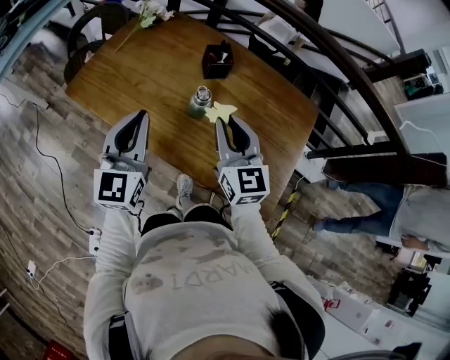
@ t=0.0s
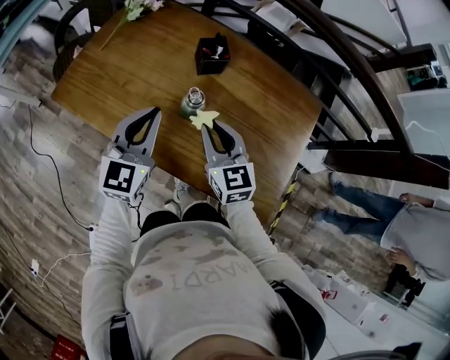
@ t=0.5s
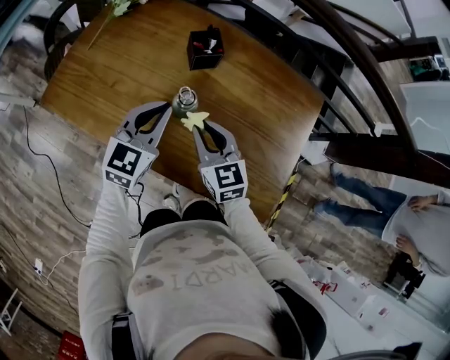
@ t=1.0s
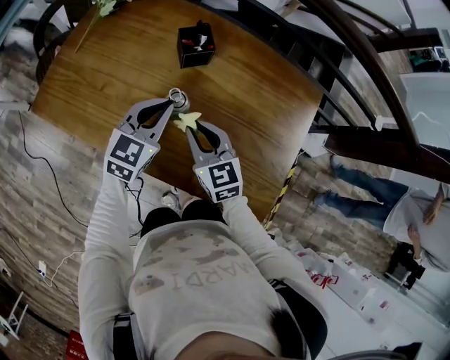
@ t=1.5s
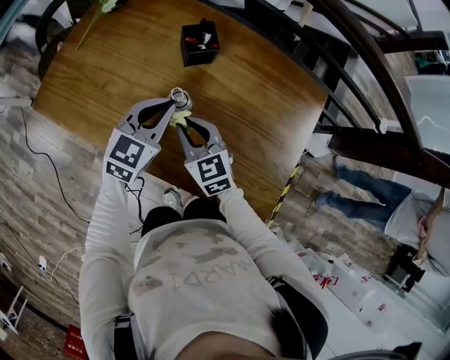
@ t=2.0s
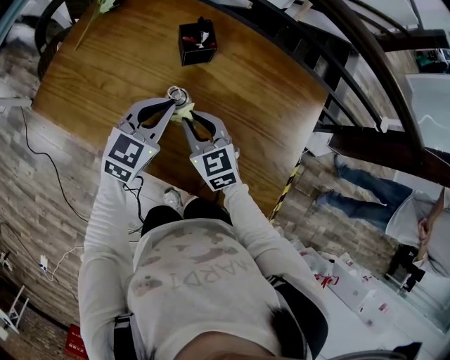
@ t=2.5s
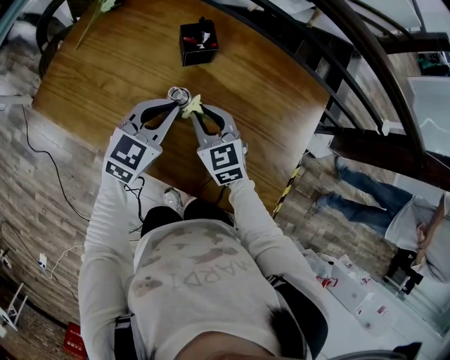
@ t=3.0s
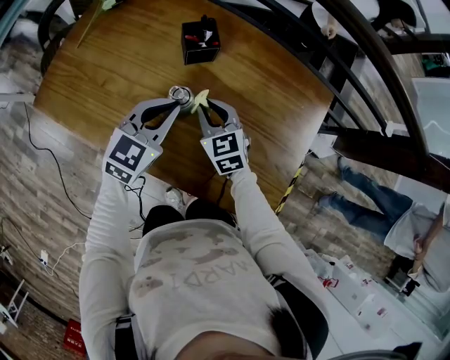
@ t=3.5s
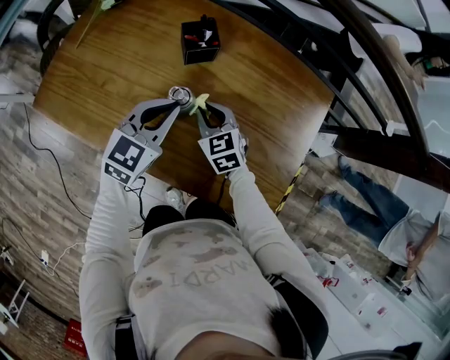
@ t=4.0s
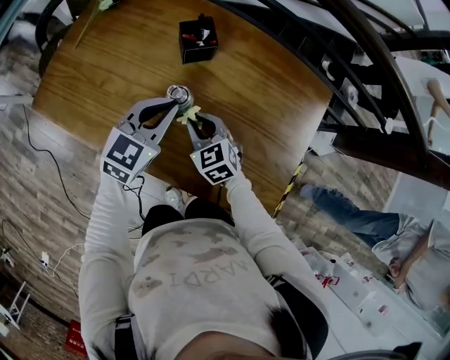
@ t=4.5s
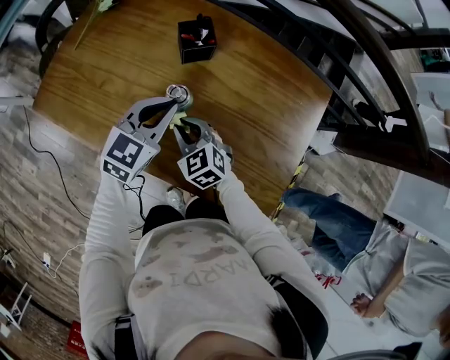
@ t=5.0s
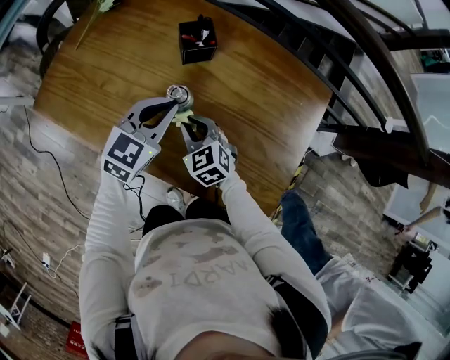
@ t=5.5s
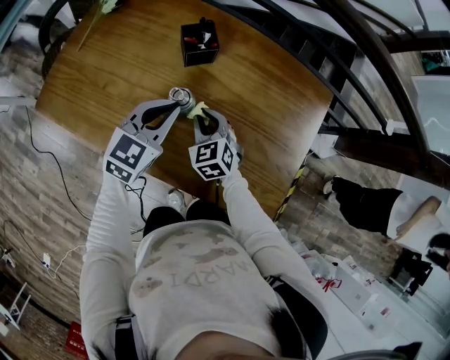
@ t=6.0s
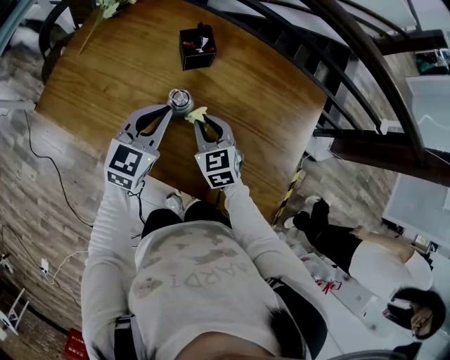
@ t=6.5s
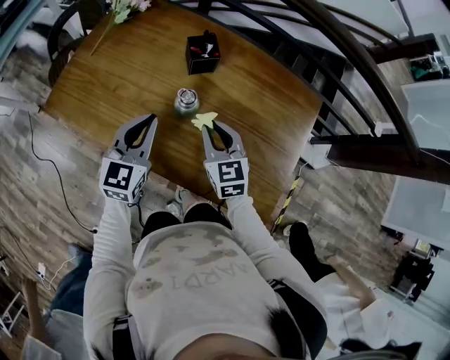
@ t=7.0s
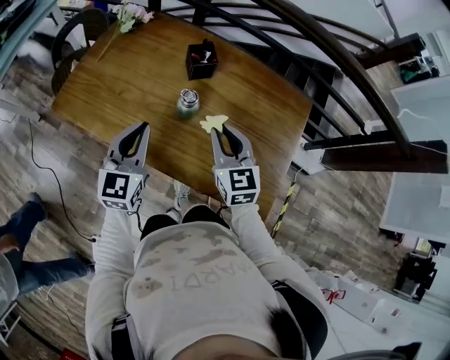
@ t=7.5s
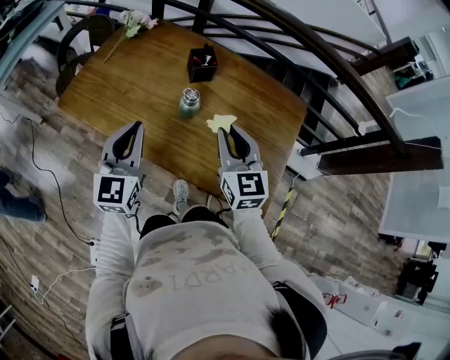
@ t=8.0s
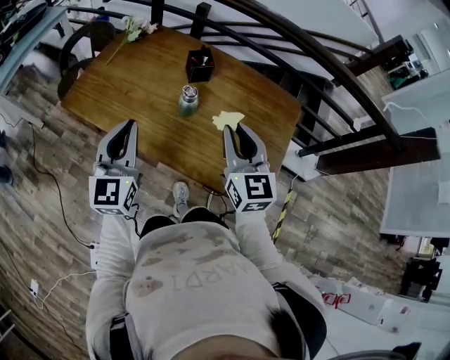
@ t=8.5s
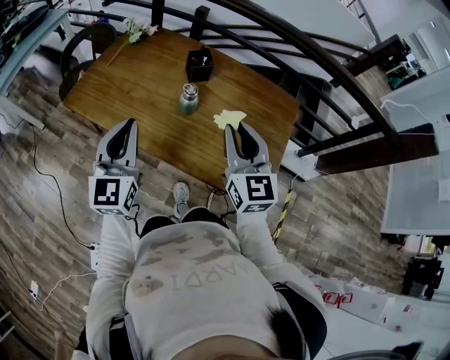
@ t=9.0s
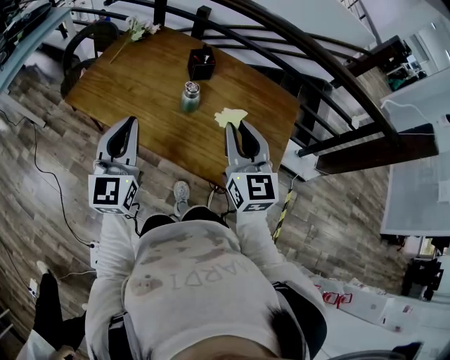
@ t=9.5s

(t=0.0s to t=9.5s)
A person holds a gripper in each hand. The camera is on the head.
t=0.0s - t=2.0s: The right gripper heads downward and forward, covering roughly 20 cm, and changes its angle by roughly 20 degrees, while the left gripper shifts some 25 cm downward, forward and to the right, and rotates roughly 30 degrees.
t=2.0s - t=4.0s: The right gripper shifts roughly 10 cm downward and forward.
t=4.0s - t=5.5s: The right gripper ends up some 5 cm from where it was.
t=5.5s - t=7.5s: The right gripper shifts some 15 cm upward, and changes its angle by some 30 degrees. Meanwhile the left gripper travels backward, to the left and upward by about 15 cm, and turns by roughly 30 degrees.
t=7.5s - t=9.5s: The left gripper heads backward and upward, covering approximately 15 cm. Meanwhile the right gripper moves upward and backward, approximately 20 cm.

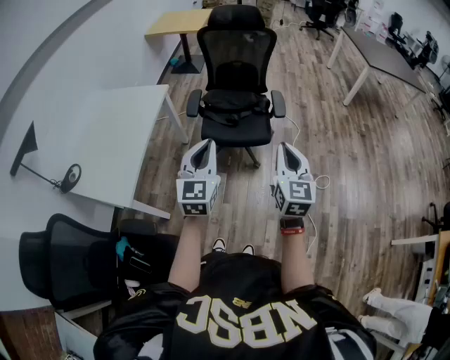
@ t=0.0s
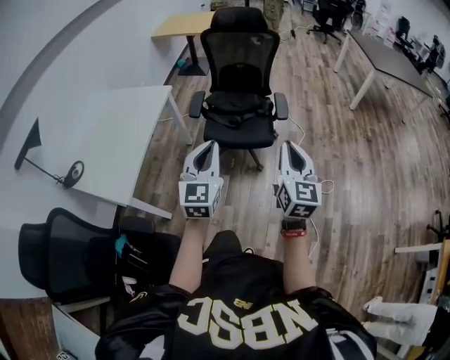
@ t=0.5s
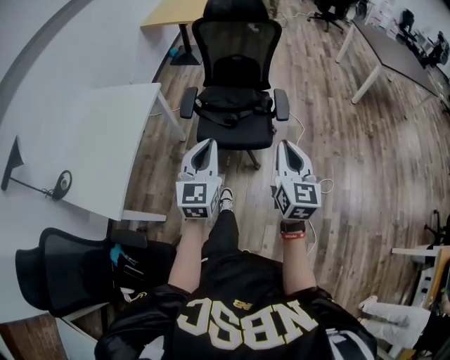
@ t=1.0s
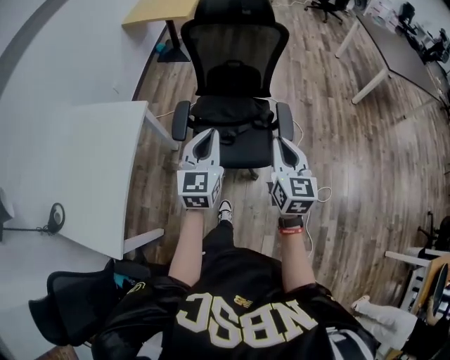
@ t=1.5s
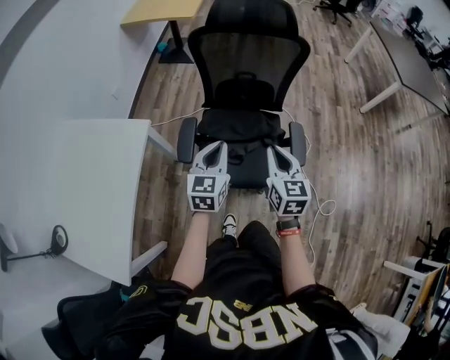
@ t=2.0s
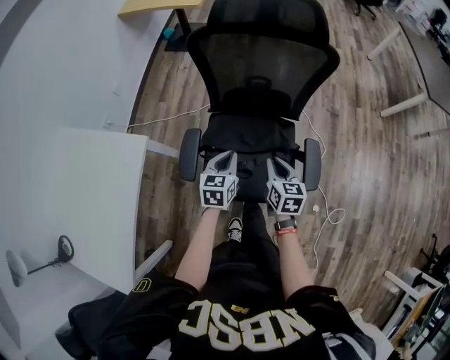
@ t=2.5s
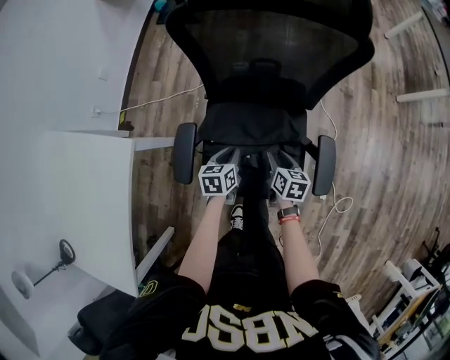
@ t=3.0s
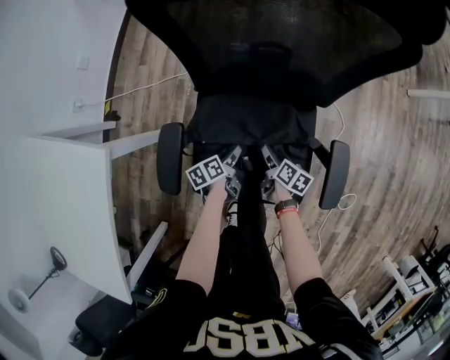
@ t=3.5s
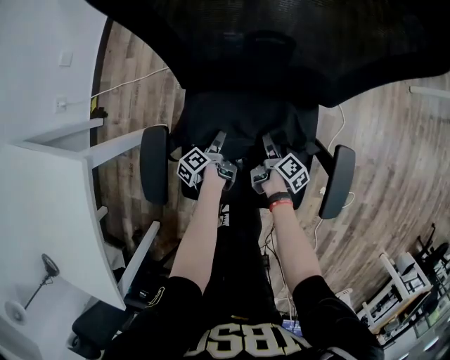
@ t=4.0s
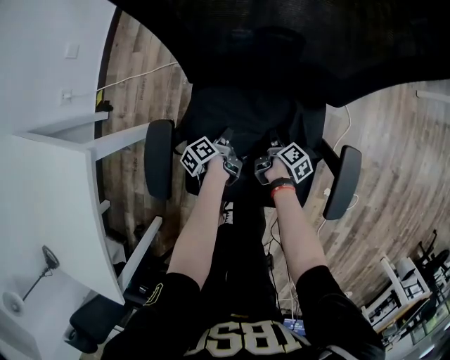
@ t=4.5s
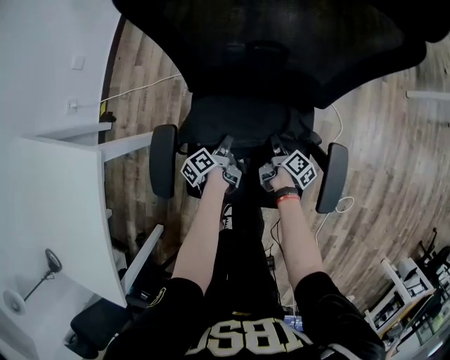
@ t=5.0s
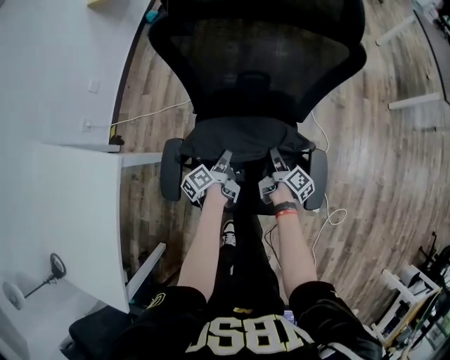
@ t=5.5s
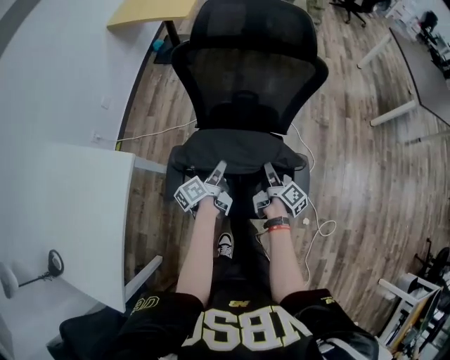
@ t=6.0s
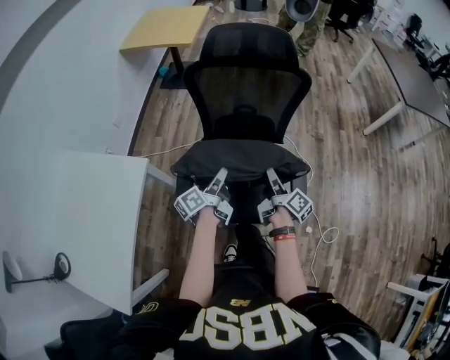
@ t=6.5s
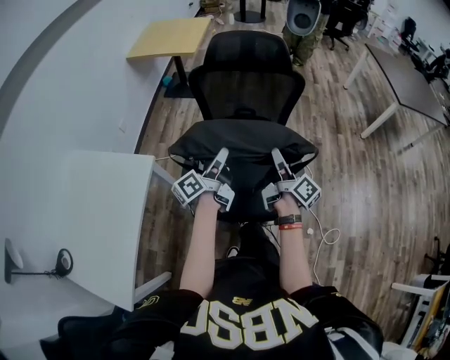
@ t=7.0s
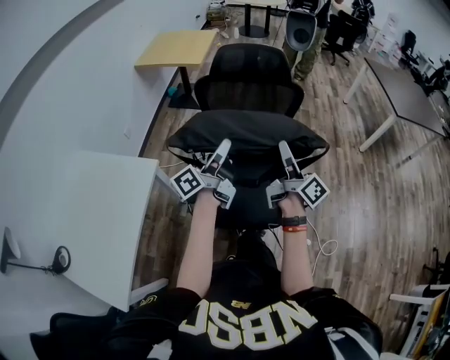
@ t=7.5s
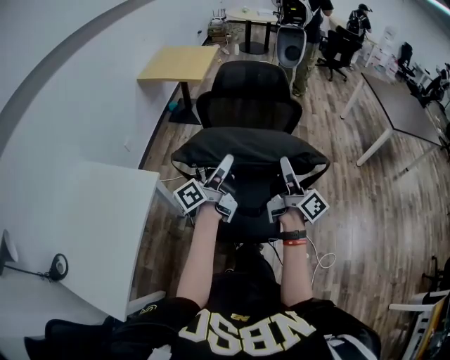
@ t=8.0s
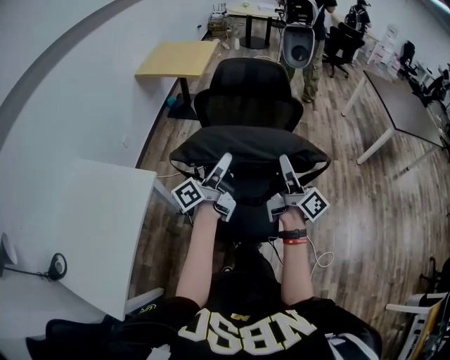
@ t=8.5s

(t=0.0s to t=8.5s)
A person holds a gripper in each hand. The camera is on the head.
t=0.0s - t=2.0s: Both grippers are carried forward, about 40 cm.
t=2.0s - t=4.0s: The right gripper travels downward and forward by some 60 cm, rolls clockwise, seen from behind, by some 70 degrees, and opens up. The left gripper shifts roughly 50 cm downward, rotates around the line of its fingers by some 90 degrees, counterclockwise from behind, and opens.
t=4.0s - t=6.5s: Both grippers move upward, roughly 40 cm. The left gripper tips its fingers upward by about 40 degrees, and closes up. Meanwhile the right gripper tilts its fingers approximately 30 degrees upward, and closes.
t=6.5s - t=8.5s: The two grippers go approximately 20 cm upward. The left gripper changes its angle by roughly 30 degrees; the right gripper rotates some 30 degrees.

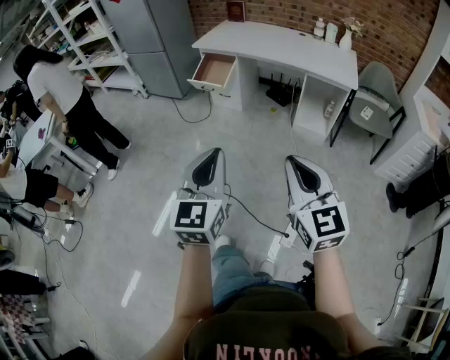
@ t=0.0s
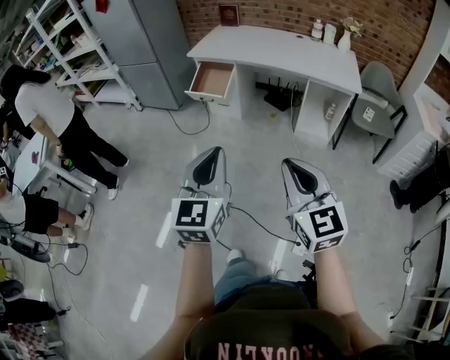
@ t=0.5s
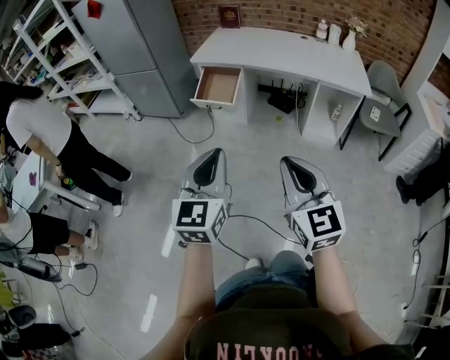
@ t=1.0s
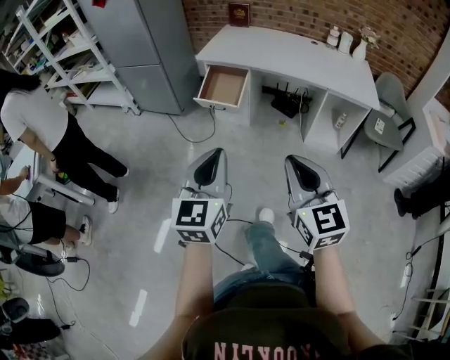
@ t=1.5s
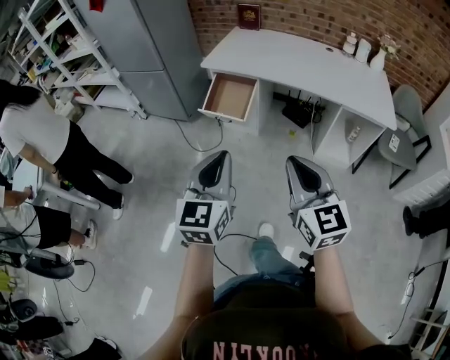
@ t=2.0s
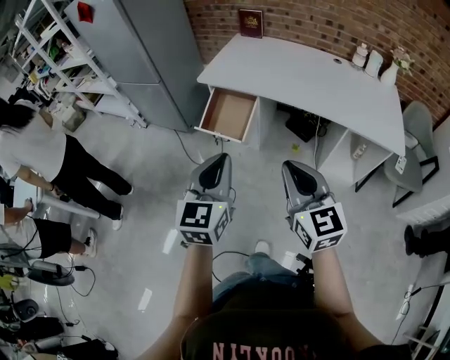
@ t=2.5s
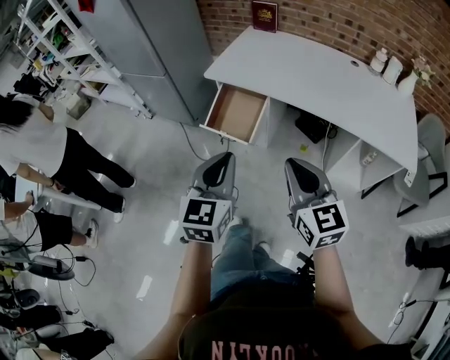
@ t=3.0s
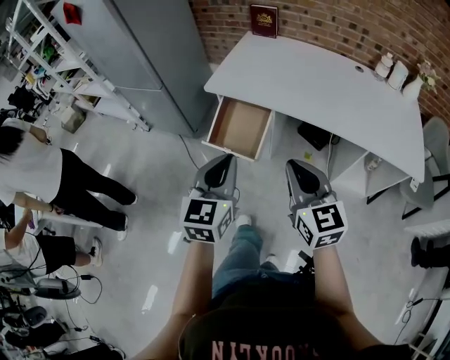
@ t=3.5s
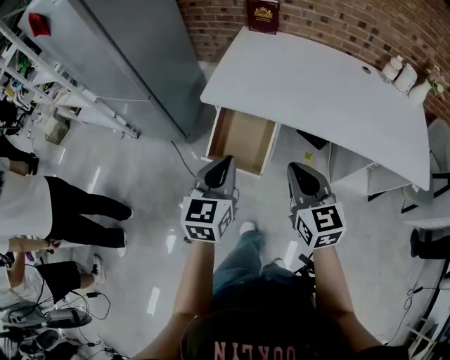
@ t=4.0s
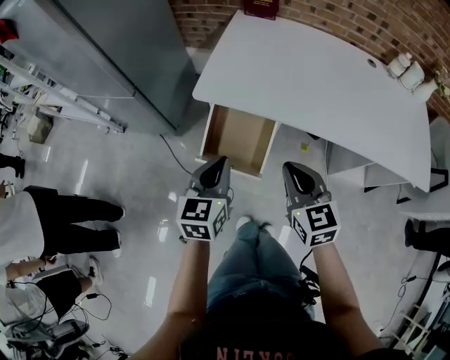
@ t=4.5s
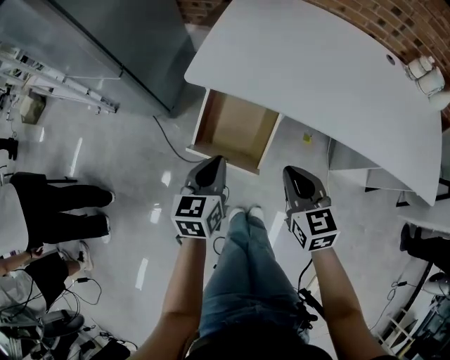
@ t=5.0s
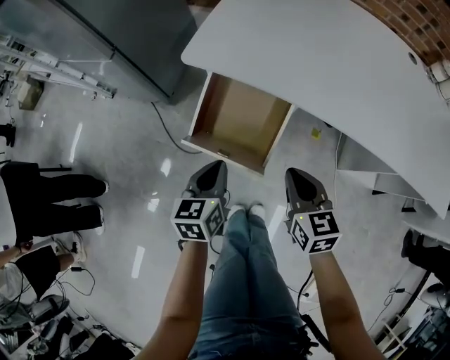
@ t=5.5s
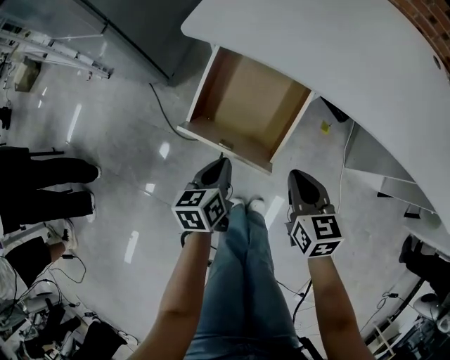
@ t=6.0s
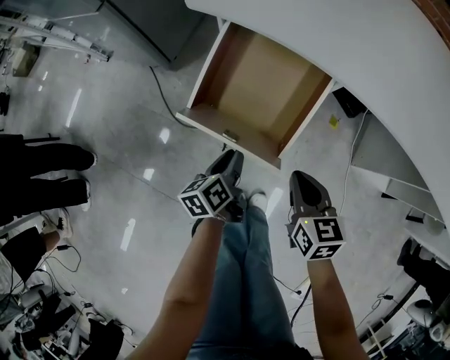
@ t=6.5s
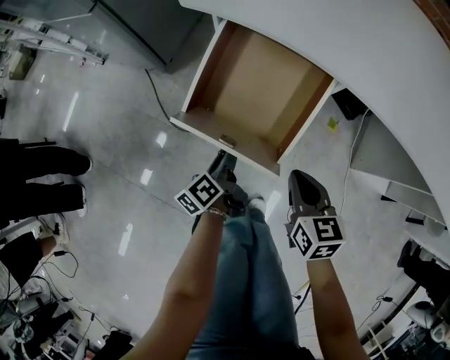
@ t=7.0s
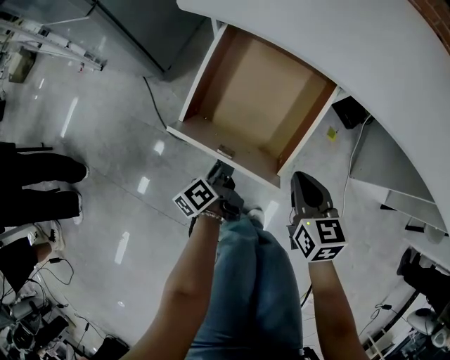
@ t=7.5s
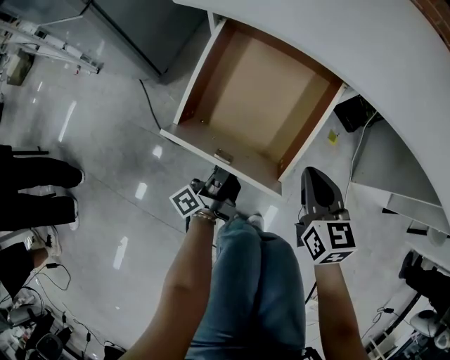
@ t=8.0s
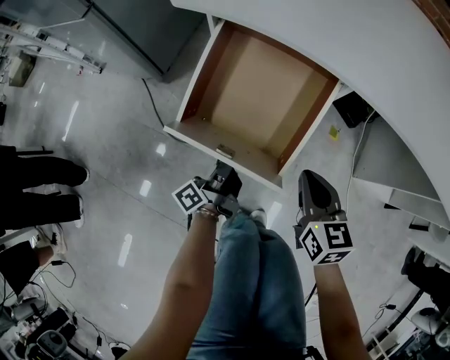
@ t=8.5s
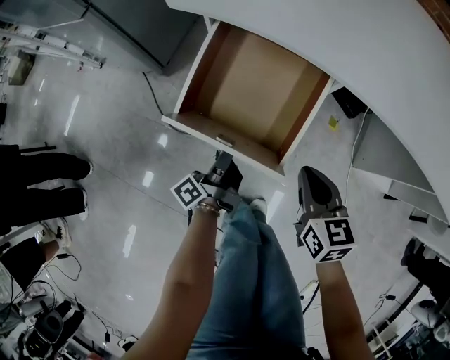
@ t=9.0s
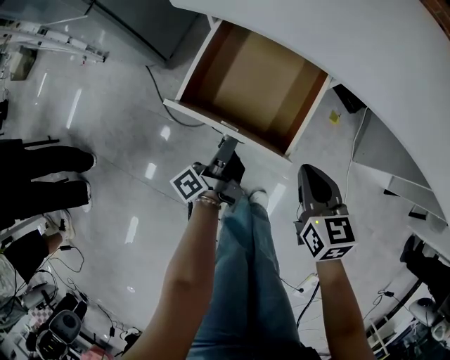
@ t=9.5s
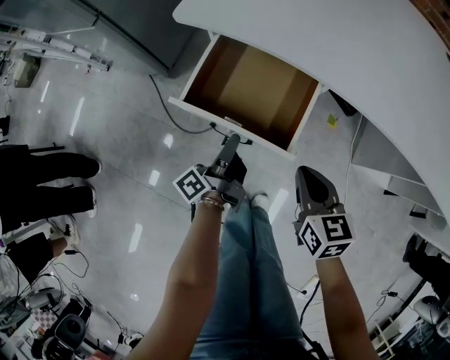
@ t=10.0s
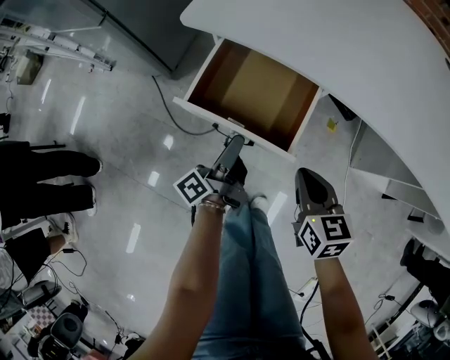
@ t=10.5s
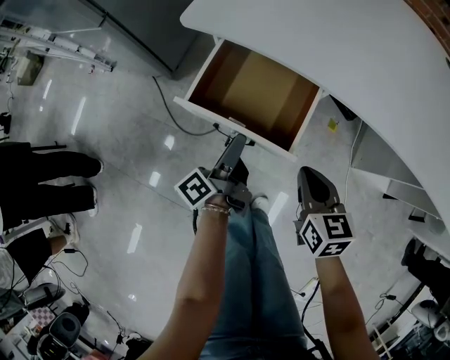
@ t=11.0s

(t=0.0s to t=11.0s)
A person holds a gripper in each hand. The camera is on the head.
t=0.0s - t=2.0s: The grippers both shift forward and to the left by approximately 40 cm.
t=2.0s - t=3.5s: The grippers both shift forward by approximately 30 cm.
t=3.5s - t=5.5s: Both grippers travel together downward and forward, approximately 35 cm. The left gripper rotates roughly 30 degrees. Meanwhile the right gripper changes its angle by approximately 30 degrees.
t=5.5s - t=7.5s: The left gripper is displaced downward by roughly 25 cm, rolls counterclockwise, seen from behind, by some 50 degrees, and opens its fingers, while the right gripper is displaced downward by some 15 cm.
t=7.5s - t=9.0s: The left gripper travels upward by approximately 5 cm, rotates approximately 20 degrees, and closes.
t=9.0s - t=11.0s: The left gripper goes about 10 cm upward, and opens.
